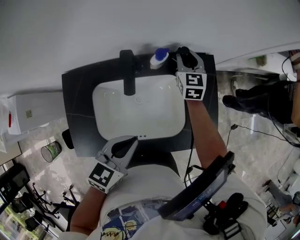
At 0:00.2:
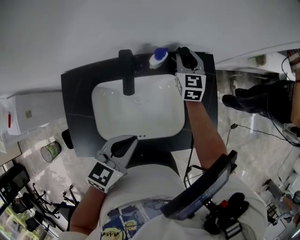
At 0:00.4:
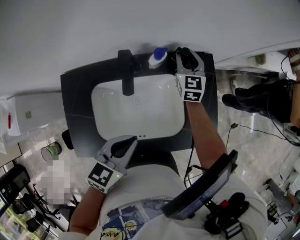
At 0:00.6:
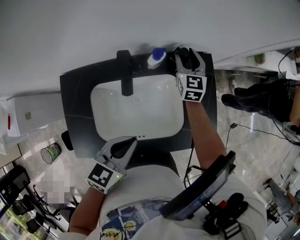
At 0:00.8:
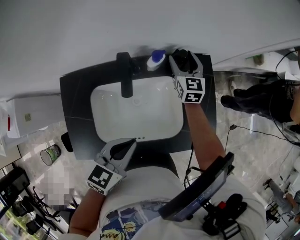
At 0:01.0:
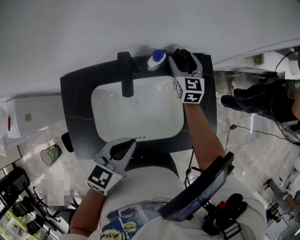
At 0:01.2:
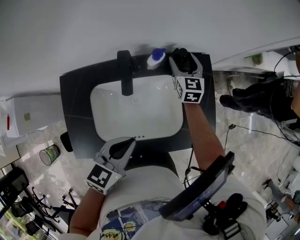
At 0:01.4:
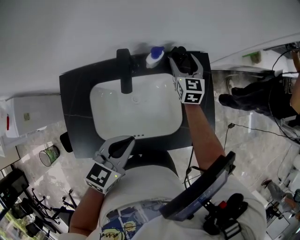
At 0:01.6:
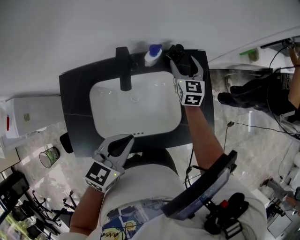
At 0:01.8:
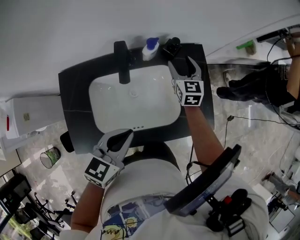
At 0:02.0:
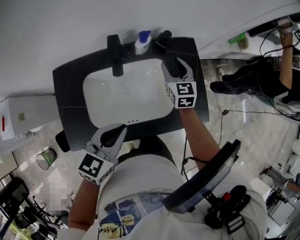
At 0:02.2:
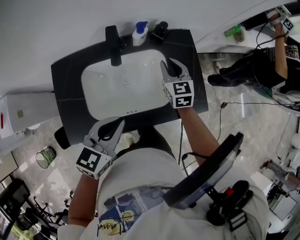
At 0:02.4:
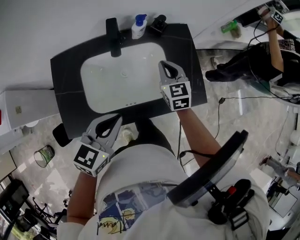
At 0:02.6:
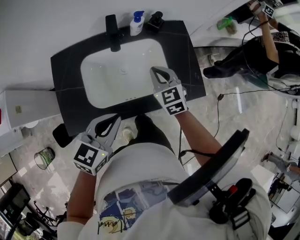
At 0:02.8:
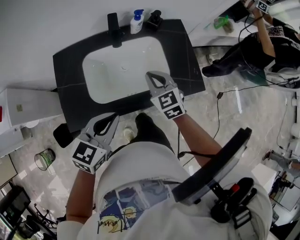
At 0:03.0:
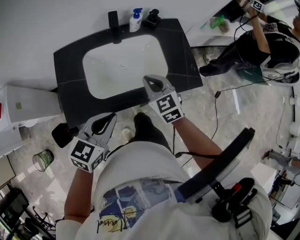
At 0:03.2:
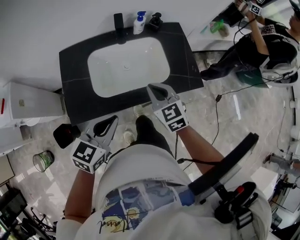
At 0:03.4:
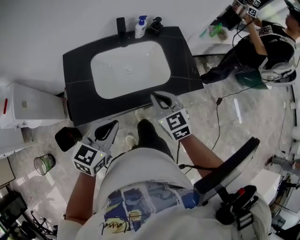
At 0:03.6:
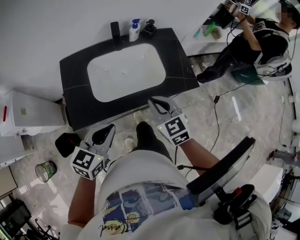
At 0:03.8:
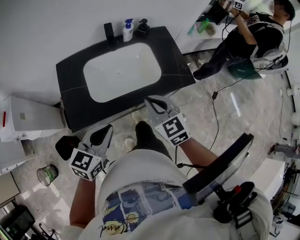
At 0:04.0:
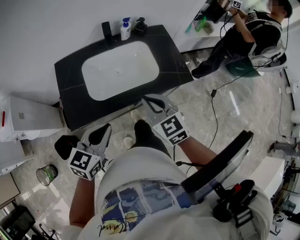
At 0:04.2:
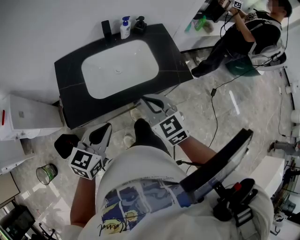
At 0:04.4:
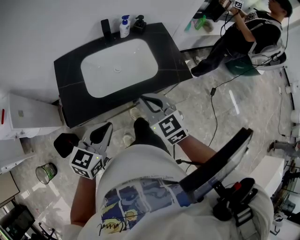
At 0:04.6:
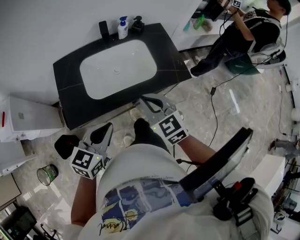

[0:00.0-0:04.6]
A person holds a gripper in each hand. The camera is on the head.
0:00.0 to 0:01.6: The right gripper shifts by approximately 5 cm, and opens its fingers.
0:01.6 to 0:03.0: The right gripper travels backward by approximately 35 cm, turns by some 20 degrees, and closes its fingers, while the left gripper heads backward, covering some 15 cm.
0:03.0 to 0:04.6: The right gripper moves backward and upward, some 15 cm, while the left gripper shifts about 5 cm backward.

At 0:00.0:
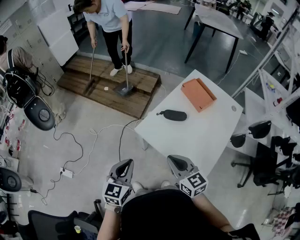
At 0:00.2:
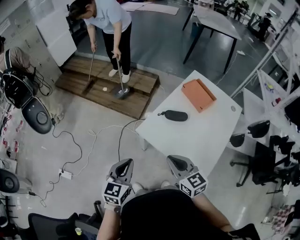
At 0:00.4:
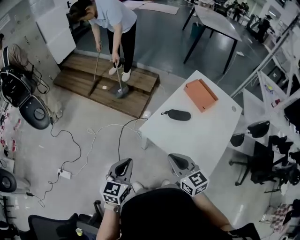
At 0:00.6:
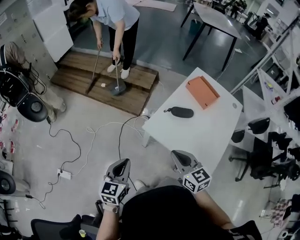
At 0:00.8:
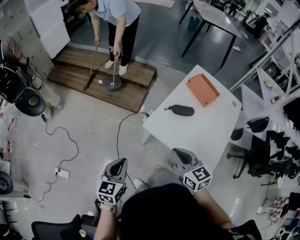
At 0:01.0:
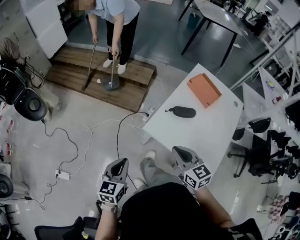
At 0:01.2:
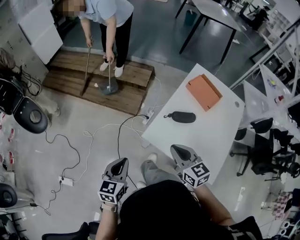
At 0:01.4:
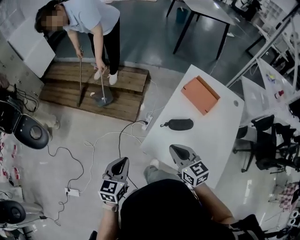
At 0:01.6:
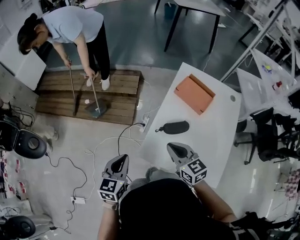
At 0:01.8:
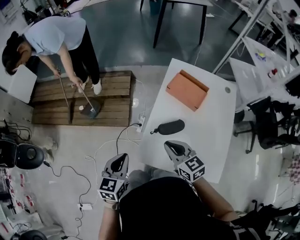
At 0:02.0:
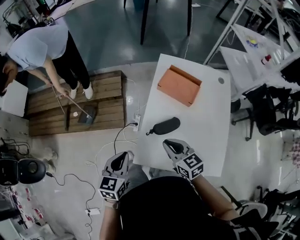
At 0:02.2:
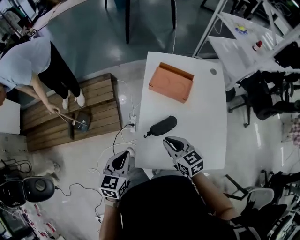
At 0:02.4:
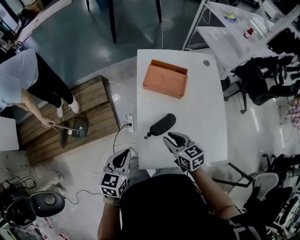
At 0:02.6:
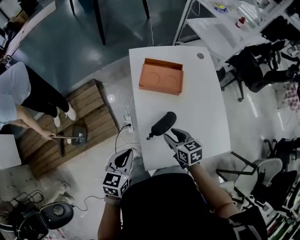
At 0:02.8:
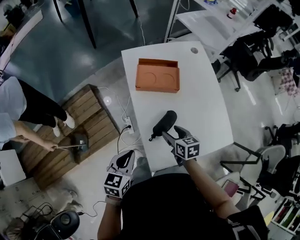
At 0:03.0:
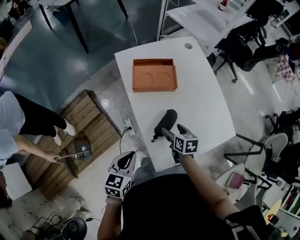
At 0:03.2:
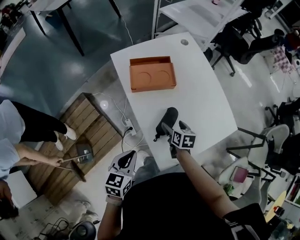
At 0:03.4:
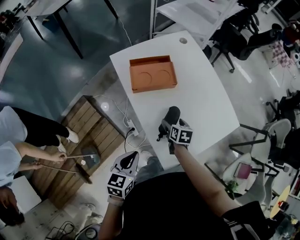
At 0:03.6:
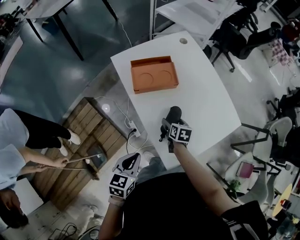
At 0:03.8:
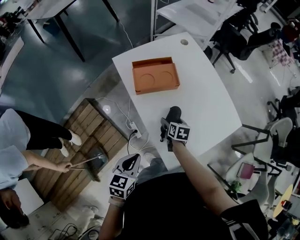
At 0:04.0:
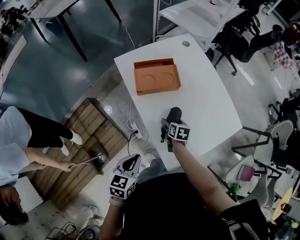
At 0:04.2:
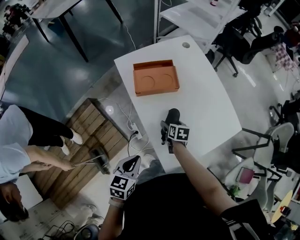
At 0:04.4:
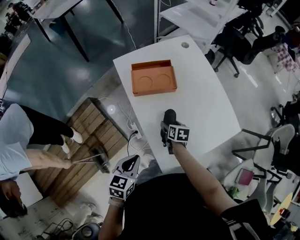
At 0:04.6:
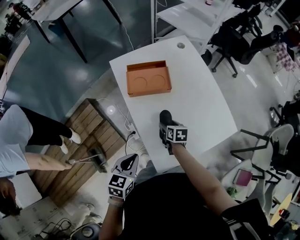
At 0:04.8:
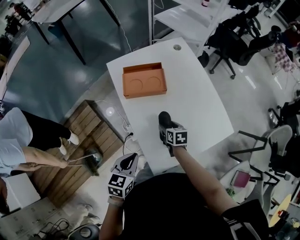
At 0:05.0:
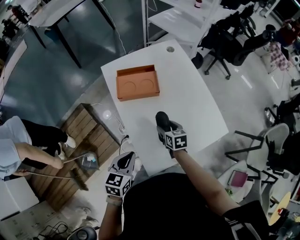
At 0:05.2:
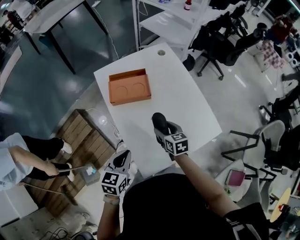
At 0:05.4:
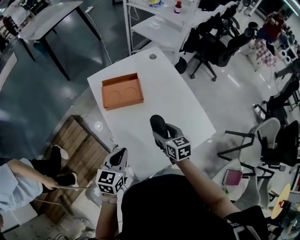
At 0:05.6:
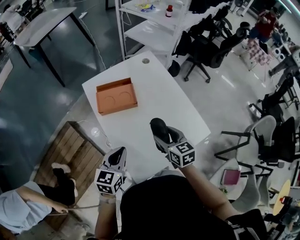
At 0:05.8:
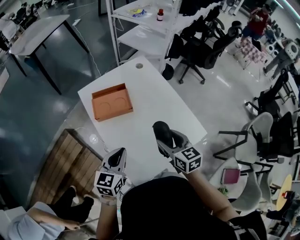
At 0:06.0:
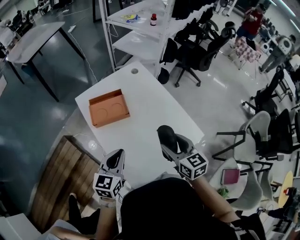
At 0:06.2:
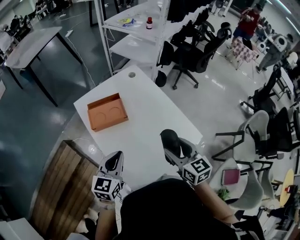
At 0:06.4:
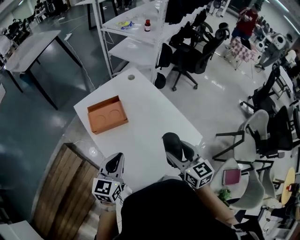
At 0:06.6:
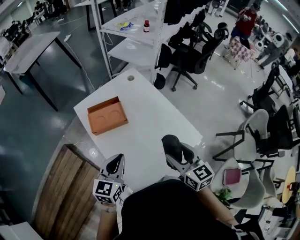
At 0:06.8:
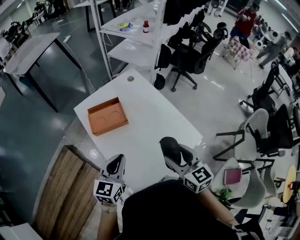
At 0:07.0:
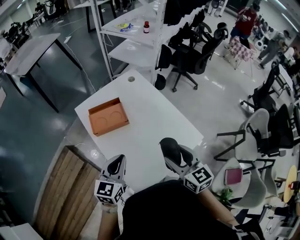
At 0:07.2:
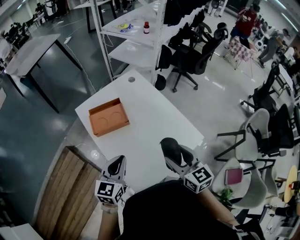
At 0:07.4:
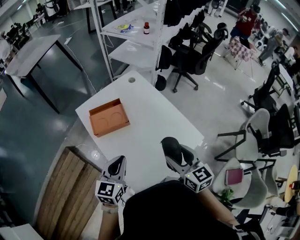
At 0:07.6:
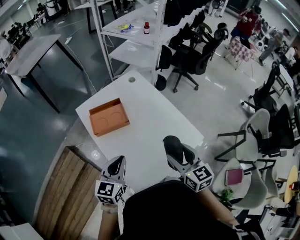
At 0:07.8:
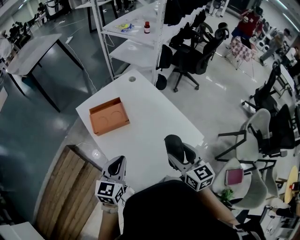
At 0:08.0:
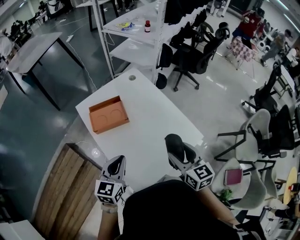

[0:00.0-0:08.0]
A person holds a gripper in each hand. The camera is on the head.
0:00.0 to 0:01.6: The grippers both shift forward by about 25 cm.
0:01.6 to 0:03.2: The left gripper changes place by some 25 cm, and turns by some 60 degrees, while the right gripper travels downward by approximately 20 cm, swivels roughly 80 degrees, and opens its fingers.
0:03.2 to 0:04.8: The left gripper is displaced to the right by some 5 cm.
0:04.8 to 0:06.4: The left gripper moves upward, forward and to the right, approximately 20 cm, and turns by roughly 20 degrees. Meanwhile the right gripper moves upward and to the right, some 30 cm, and swivels roughly 30 degrees.
0:06.4 to 0:08.0: The grippers move only a little.

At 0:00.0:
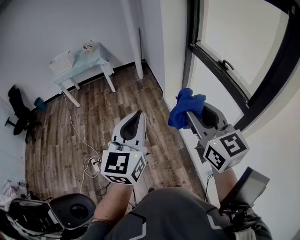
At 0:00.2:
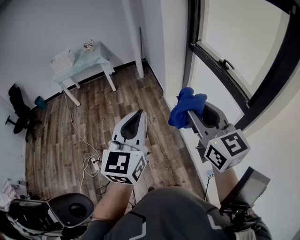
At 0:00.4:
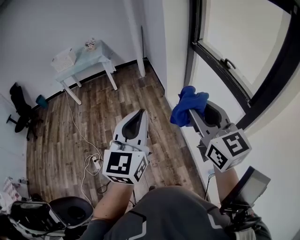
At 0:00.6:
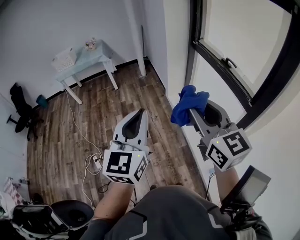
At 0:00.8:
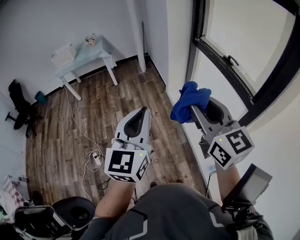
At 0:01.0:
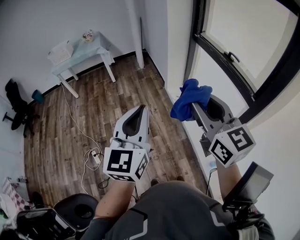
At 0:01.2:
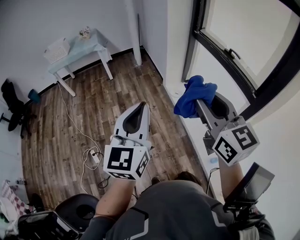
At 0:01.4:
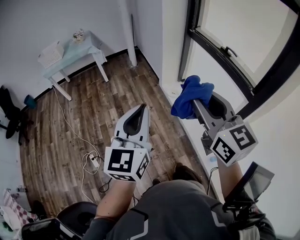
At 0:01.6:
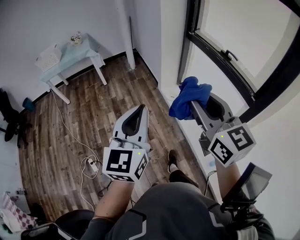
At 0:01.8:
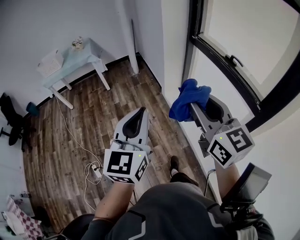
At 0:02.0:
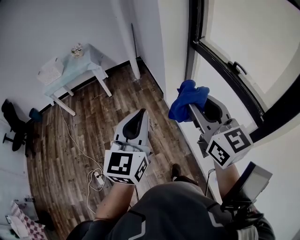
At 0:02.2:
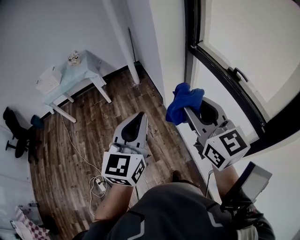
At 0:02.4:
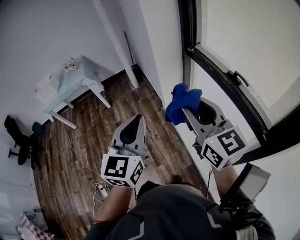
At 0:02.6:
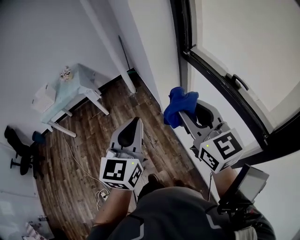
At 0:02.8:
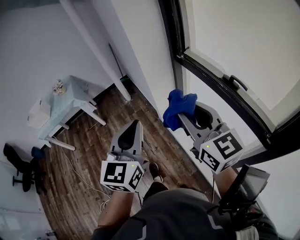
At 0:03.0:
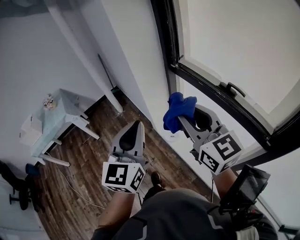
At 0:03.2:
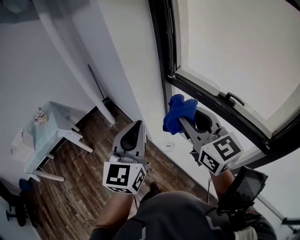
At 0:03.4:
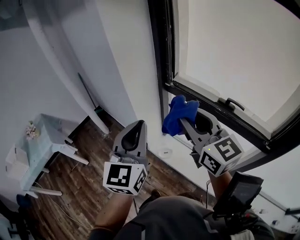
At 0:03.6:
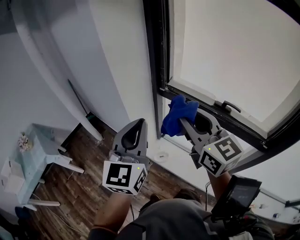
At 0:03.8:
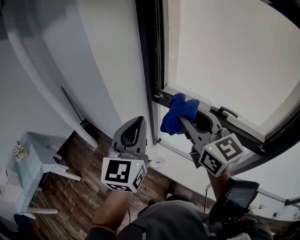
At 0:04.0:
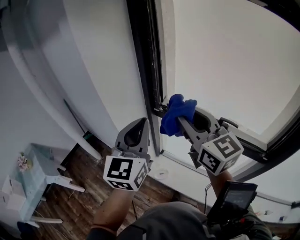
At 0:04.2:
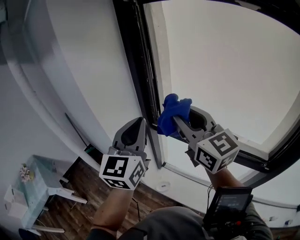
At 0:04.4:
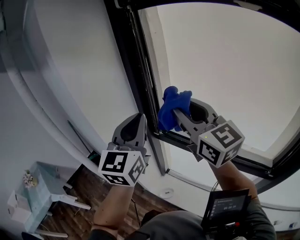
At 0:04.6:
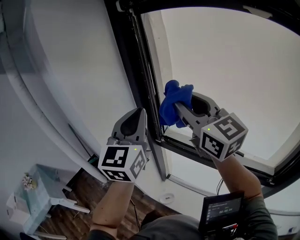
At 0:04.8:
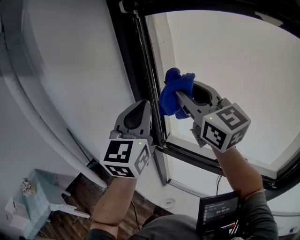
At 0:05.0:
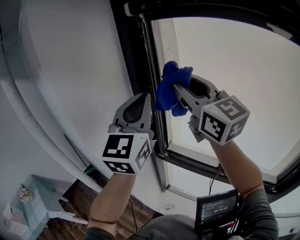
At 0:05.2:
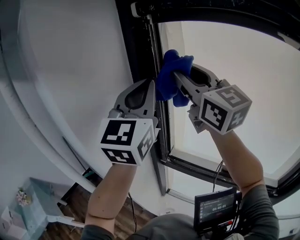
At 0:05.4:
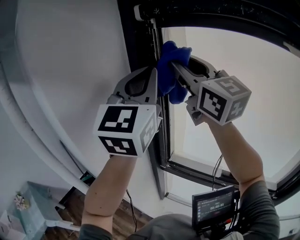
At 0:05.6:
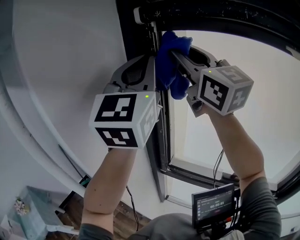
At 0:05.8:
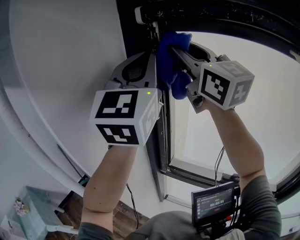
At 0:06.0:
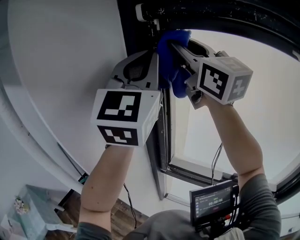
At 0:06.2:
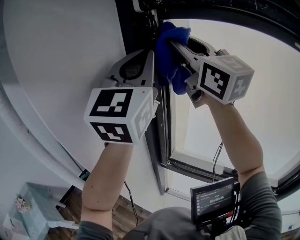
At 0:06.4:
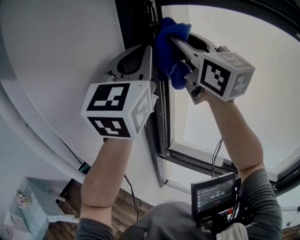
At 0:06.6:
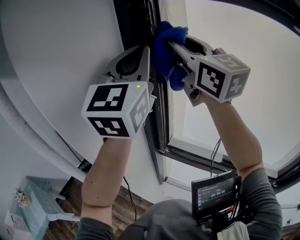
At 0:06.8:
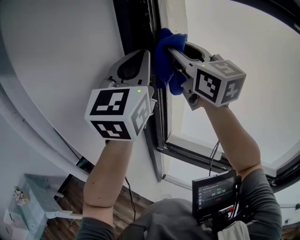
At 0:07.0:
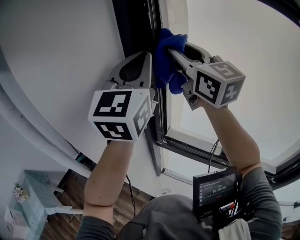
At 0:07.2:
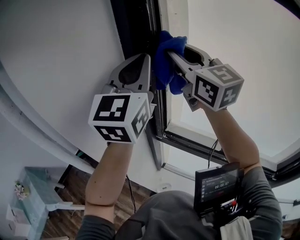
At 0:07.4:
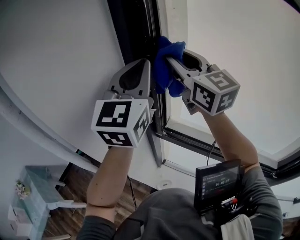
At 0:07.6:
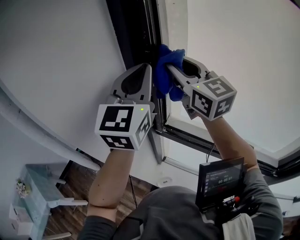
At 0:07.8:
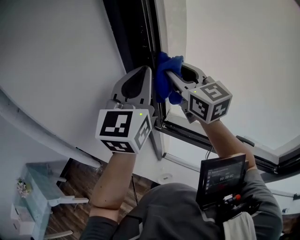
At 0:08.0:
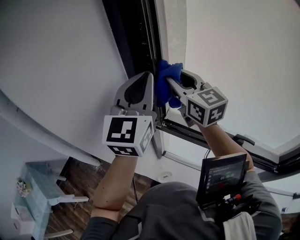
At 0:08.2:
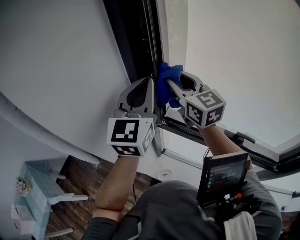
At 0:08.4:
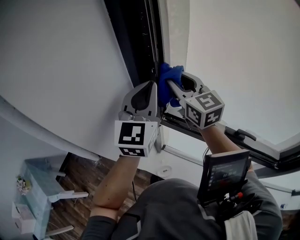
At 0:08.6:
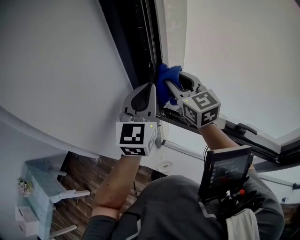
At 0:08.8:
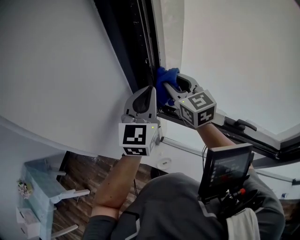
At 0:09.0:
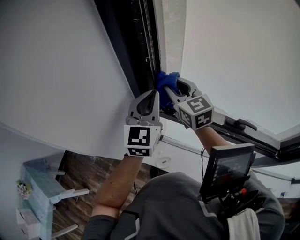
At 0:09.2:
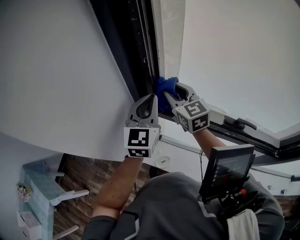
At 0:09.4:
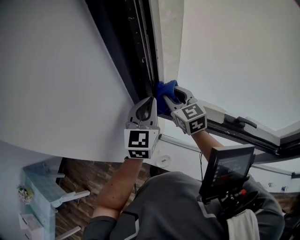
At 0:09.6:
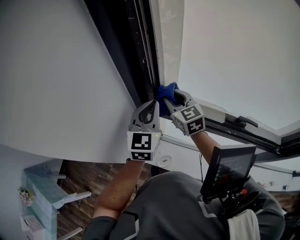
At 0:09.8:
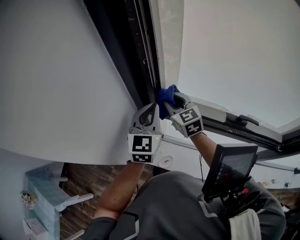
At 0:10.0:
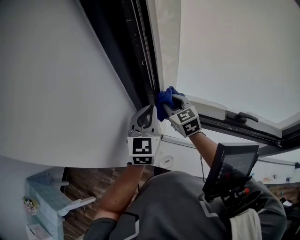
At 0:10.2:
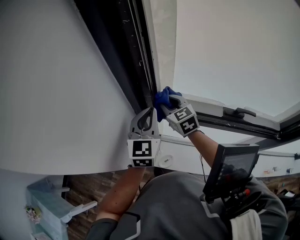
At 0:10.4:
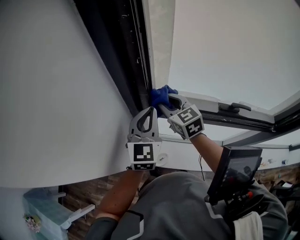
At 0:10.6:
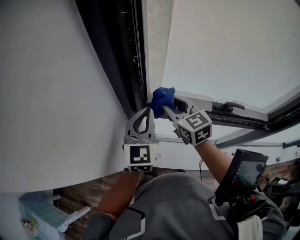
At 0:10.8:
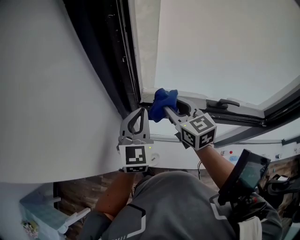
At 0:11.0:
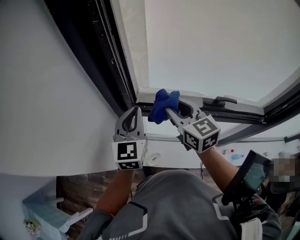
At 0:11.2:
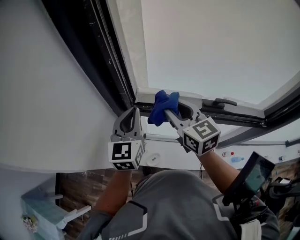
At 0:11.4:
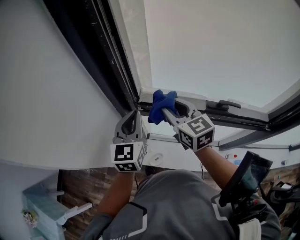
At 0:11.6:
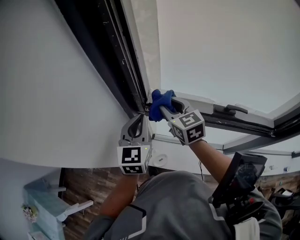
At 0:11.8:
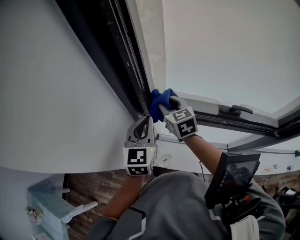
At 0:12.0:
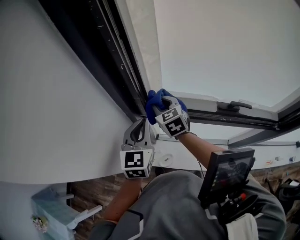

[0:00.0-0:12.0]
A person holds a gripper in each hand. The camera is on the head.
0:00.0 to 0:01.6: The grippers both shift forward and to the left by some 10 cm.
0:01.6 to 0:03.0: The two grippers travel together, forward, approximately 40 cm.
0:03.0 to 0:04.4: The left gripper travels forward by about 35 cm, and turns by some 30 degrees. Meanwhile the right gripper goes roughly 30 cm forward and upward, and swivels some 20 degrees.
0:04.4 to 0:06.0: Both grippers travel together upward and forward, about 30 cm. The left gripper swivels about 20 degrees.
0:06.0 to 0:07.6: Both grippers move downward, some 20 cm.
0:07.6 to 0:09.0: Both grippers move downward, about 20 cm.
0:09.0 to 0:10.4: The two grippers go approximately 10 cm downward.
